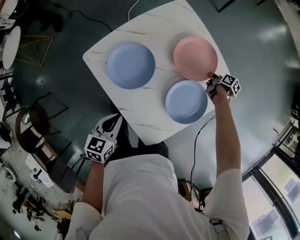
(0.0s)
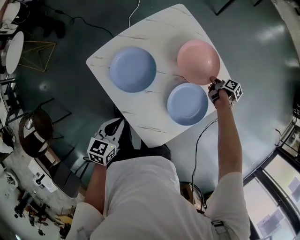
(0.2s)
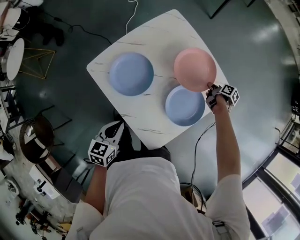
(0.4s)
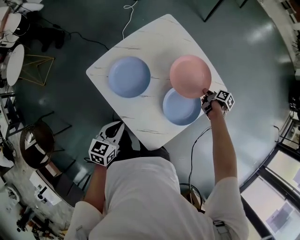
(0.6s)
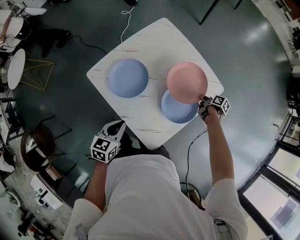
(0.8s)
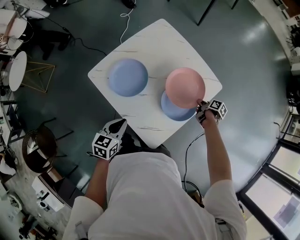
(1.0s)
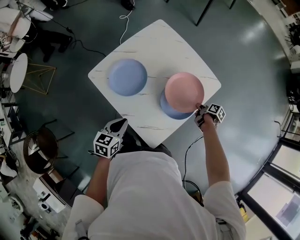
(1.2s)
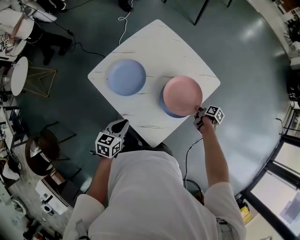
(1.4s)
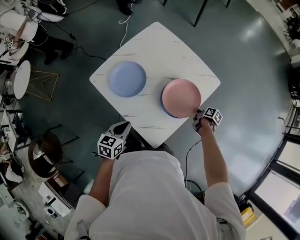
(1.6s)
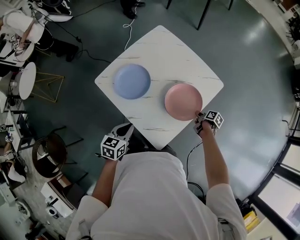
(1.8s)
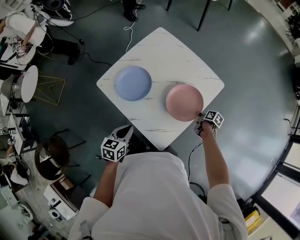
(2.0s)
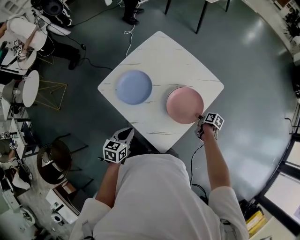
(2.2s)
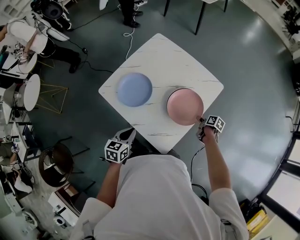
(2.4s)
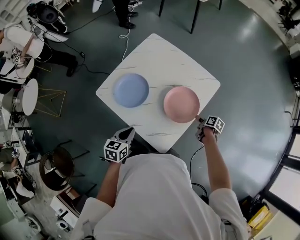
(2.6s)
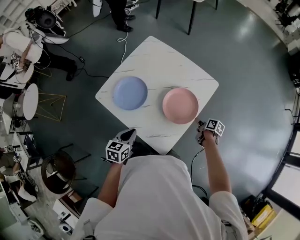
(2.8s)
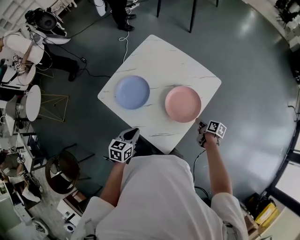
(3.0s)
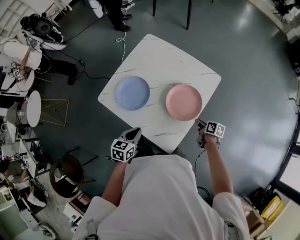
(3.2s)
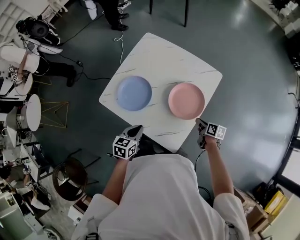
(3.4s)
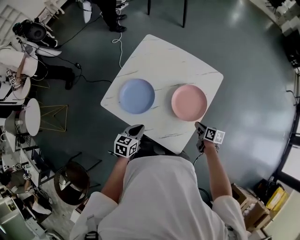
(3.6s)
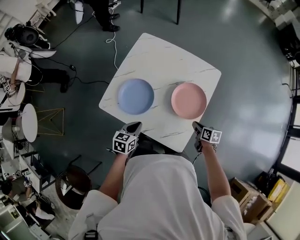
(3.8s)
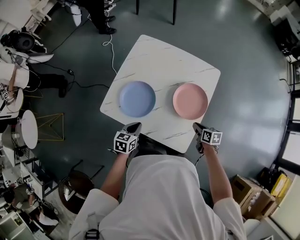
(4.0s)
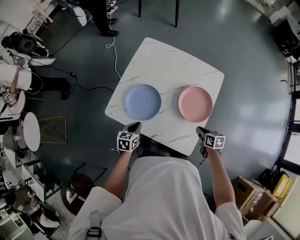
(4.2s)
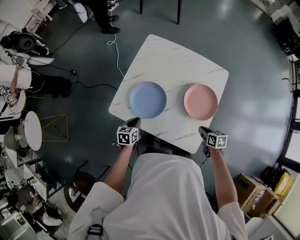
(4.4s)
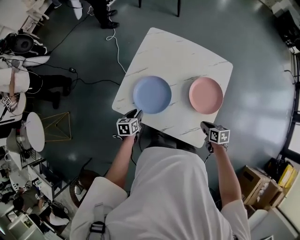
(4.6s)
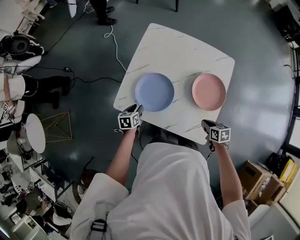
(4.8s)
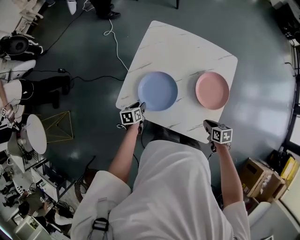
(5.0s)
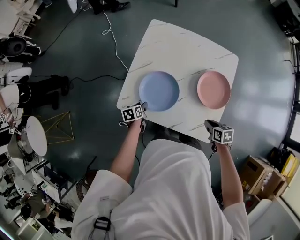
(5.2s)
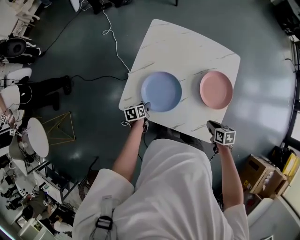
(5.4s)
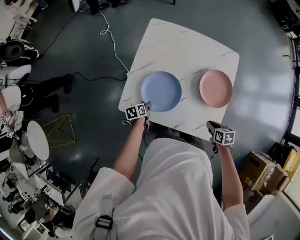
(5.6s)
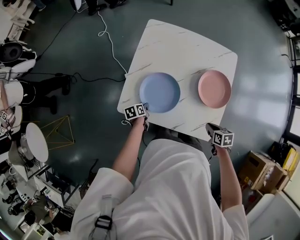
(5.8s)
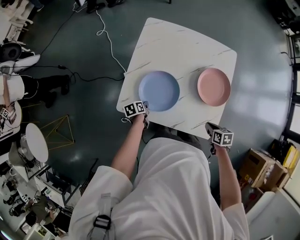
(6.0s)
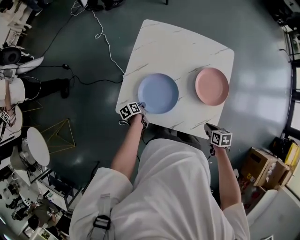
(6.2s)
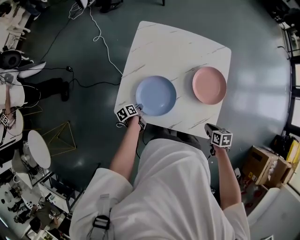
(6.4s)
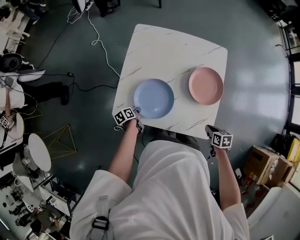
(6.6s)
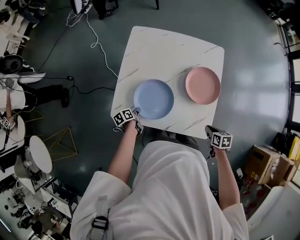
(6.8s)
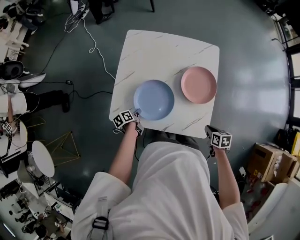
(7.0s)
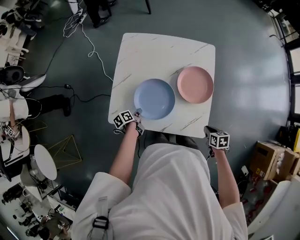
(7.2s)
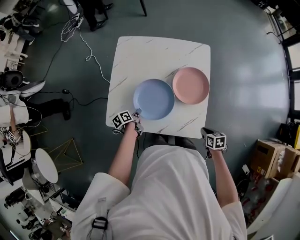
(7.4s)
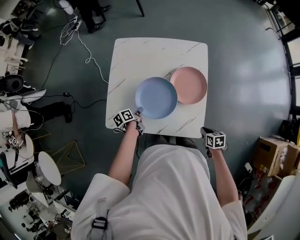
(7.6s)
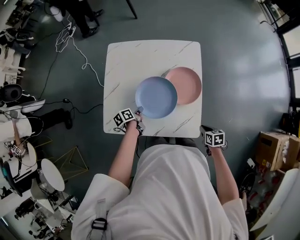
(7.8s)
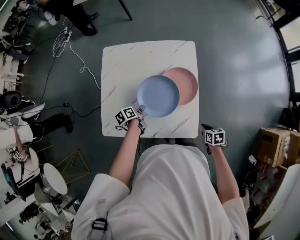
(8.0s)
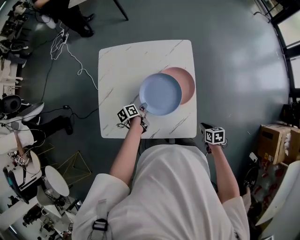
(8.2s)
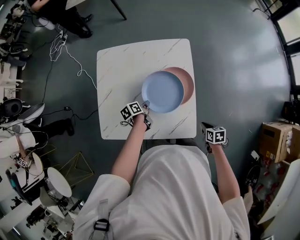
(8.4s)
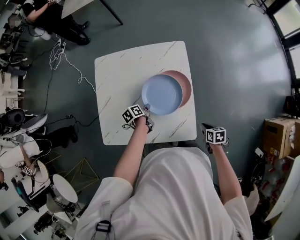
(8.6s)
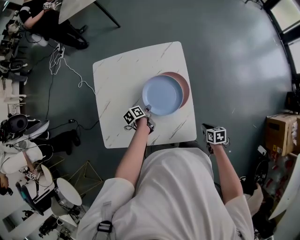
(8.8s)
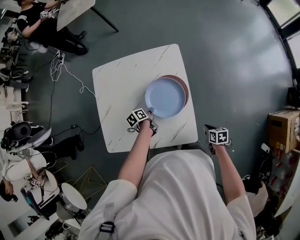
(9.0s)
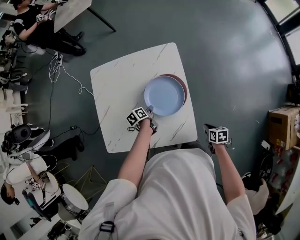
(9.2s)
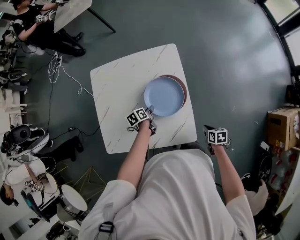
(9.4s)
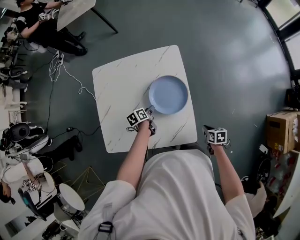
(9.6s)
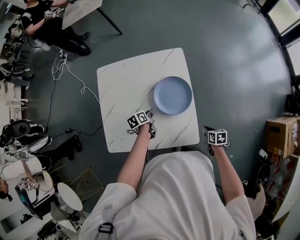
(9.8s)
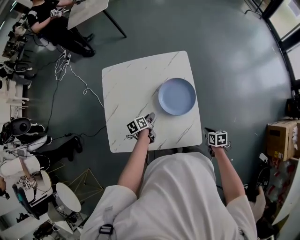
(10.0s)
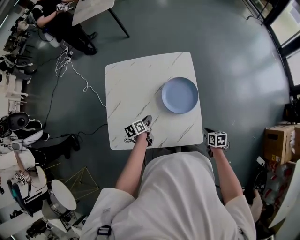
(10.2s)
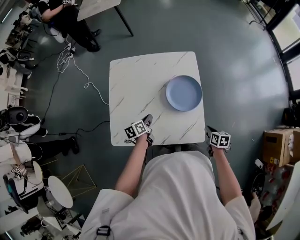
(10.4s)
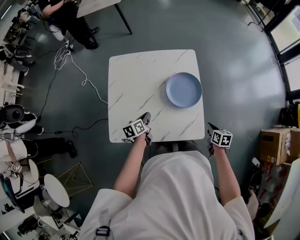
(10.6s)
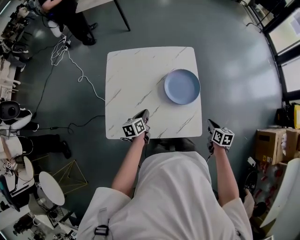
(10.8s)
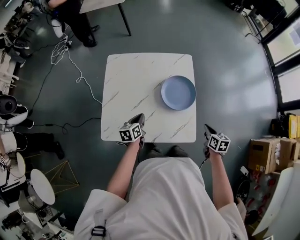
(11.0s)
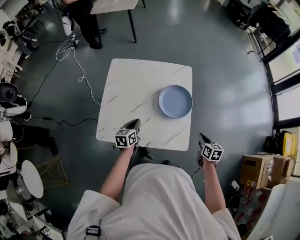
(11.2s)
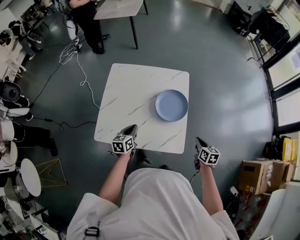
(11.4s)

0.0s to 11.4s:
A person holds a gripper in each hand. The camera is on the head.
0.0s to 1.4s: The right gripper travels backward by approximately 25 cm; the left gripper ends up about 5 cm from where it was.
1.4s to 2.8s: The right gripper moves backward, about 5 cm.
2.8s to 4.2s: The right gripper heads to the left and backward, covering approximately 15 cm, and changes its angle by some 20 degrees, while the left gripper is displaced to the left, forward and downward by about 15 cm.
4.2s to 5.6s: The right gripper heads to the left, covering roughly 10 cm; the left gripper moves downward, to the left and forward, about 20 cm, swivels about 30 degrees, and opens its fingers.
5.6s to 7.2s: The left gripper is displaced to the right by some 5 cm, and closes its fingers. Meanwhile the right gripper moves to the right and backward, roughly 10 cm.
7.2s to 8.6s: The left gripper shifts approximately 20 cm to the right and forward, while the right gripper is displaced to the right by approximately 10 cm.
8.6s to 10.0s: The left gripper opens up.
10.0s to 11.4s: The left gripper travels upward and backward by some 15 cm, turns by roughly 30 degrees, and closes its fingers; the right gripper heads upward, covering approximately 15 cm, and changes its angle by approximately 20 degrees.

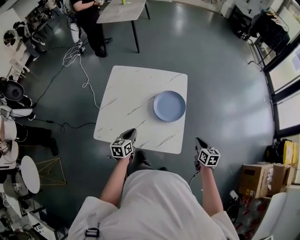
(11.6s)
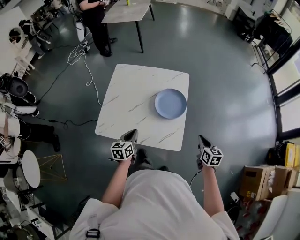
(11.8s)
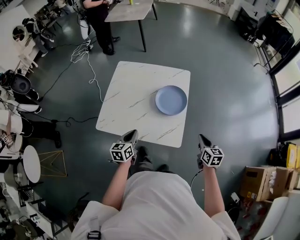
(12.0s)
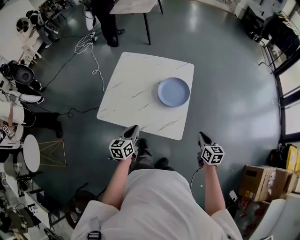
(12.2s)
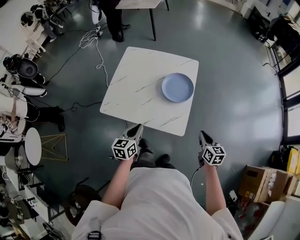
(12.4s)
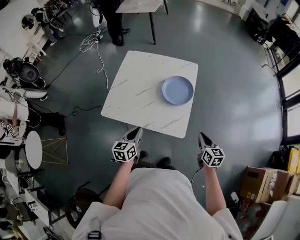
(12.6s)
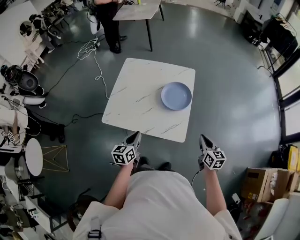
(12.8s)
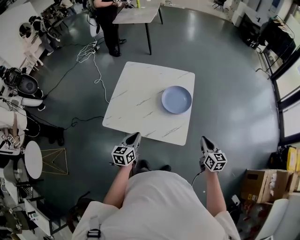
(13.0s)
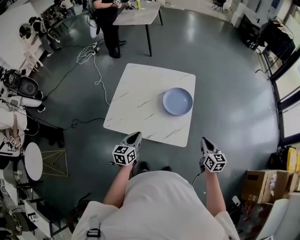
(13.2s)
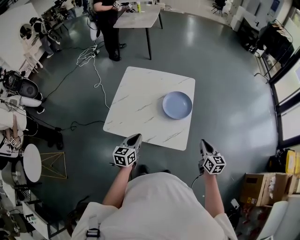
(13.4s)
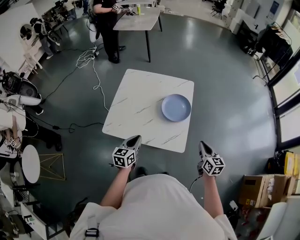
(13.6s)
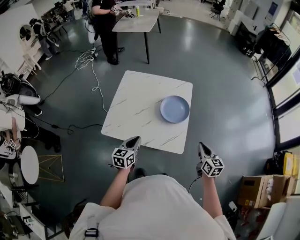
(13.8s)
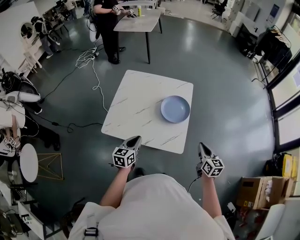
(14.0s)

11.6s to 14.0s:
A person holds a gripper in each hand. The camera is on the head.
11.6s to 12.8s: The left gripper goes about 15 cm backward. Meanwhile the right gripper shifts approximately 10 cm backward and upward.
12.8s to 14.0s: The grippers stay close to where they were, moving slightly.

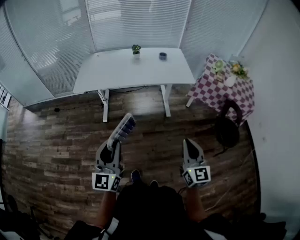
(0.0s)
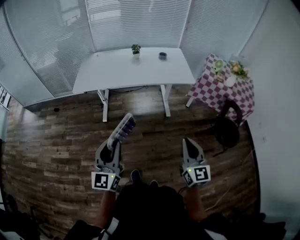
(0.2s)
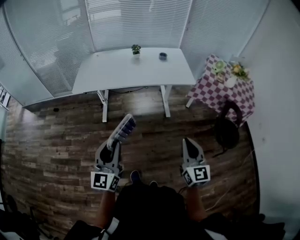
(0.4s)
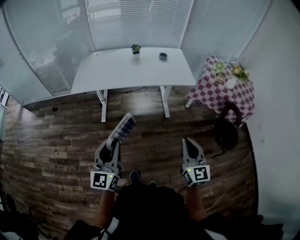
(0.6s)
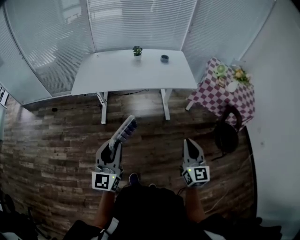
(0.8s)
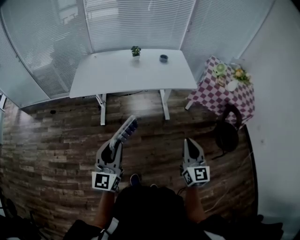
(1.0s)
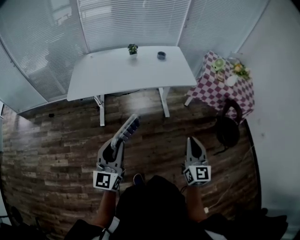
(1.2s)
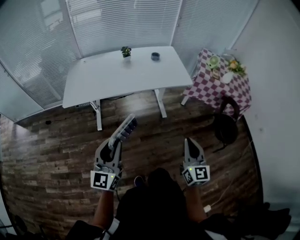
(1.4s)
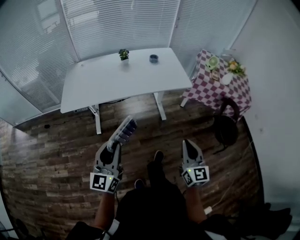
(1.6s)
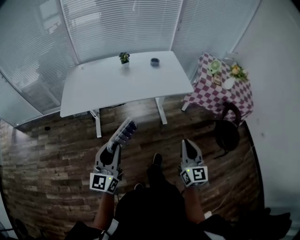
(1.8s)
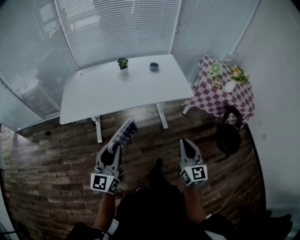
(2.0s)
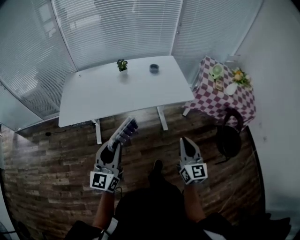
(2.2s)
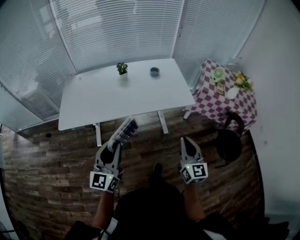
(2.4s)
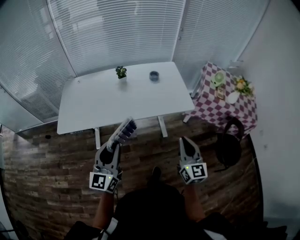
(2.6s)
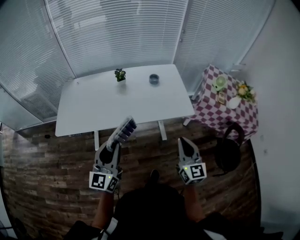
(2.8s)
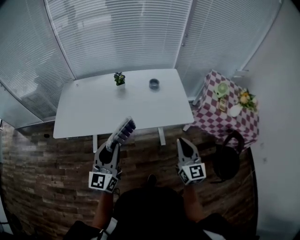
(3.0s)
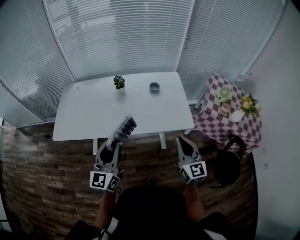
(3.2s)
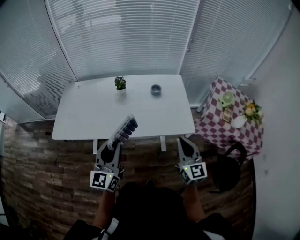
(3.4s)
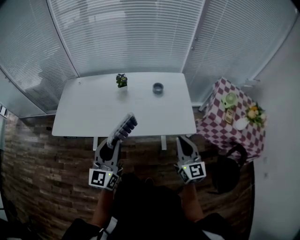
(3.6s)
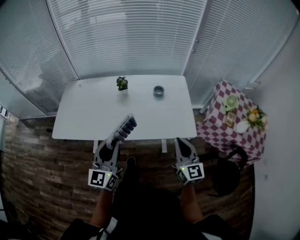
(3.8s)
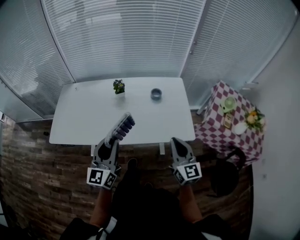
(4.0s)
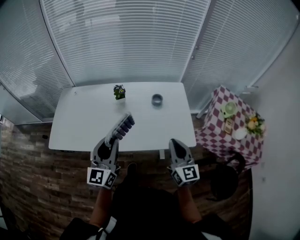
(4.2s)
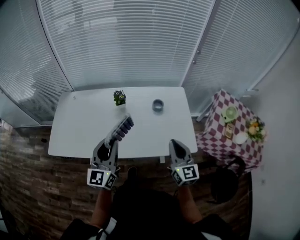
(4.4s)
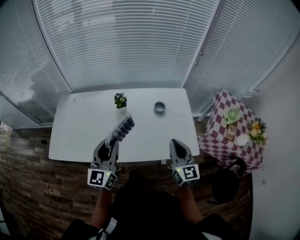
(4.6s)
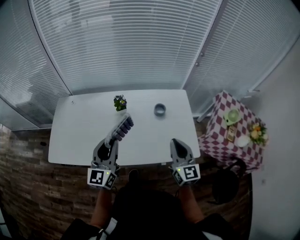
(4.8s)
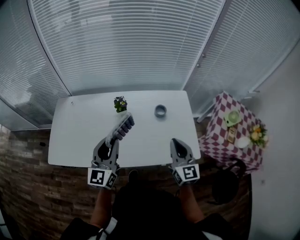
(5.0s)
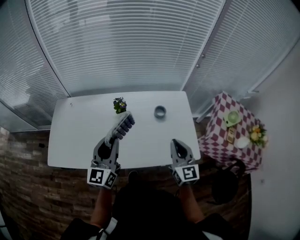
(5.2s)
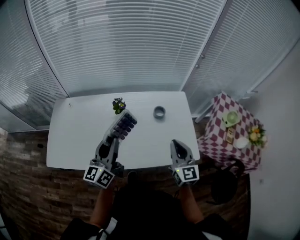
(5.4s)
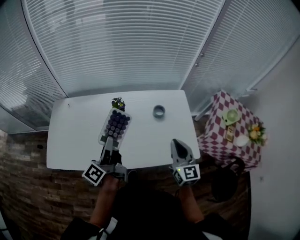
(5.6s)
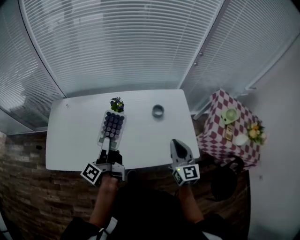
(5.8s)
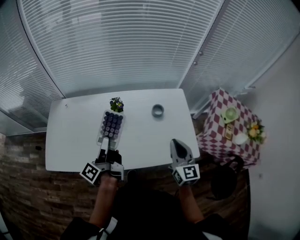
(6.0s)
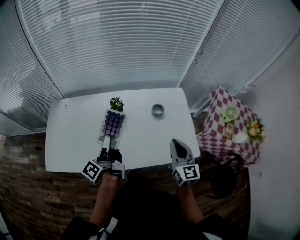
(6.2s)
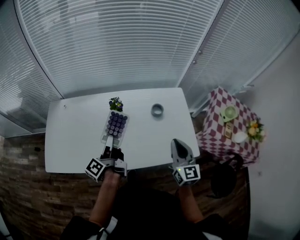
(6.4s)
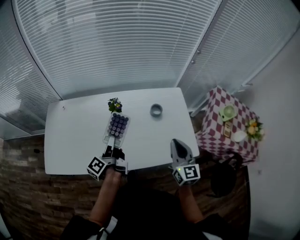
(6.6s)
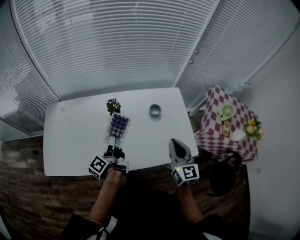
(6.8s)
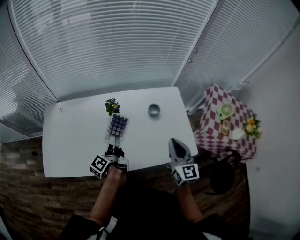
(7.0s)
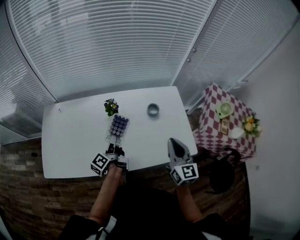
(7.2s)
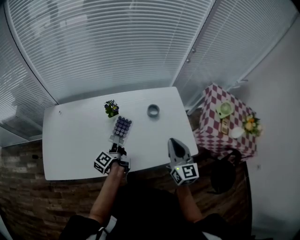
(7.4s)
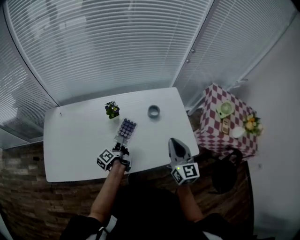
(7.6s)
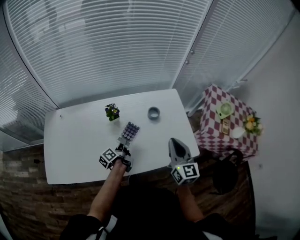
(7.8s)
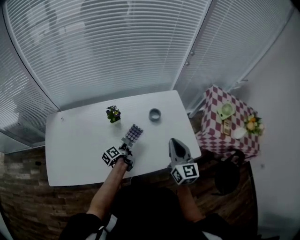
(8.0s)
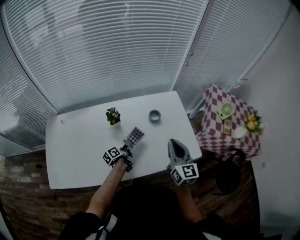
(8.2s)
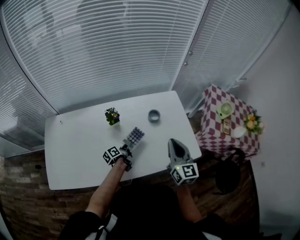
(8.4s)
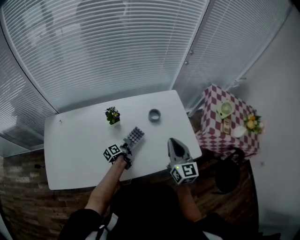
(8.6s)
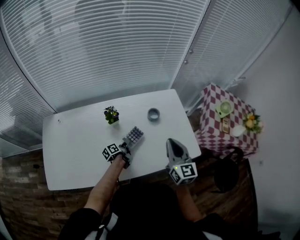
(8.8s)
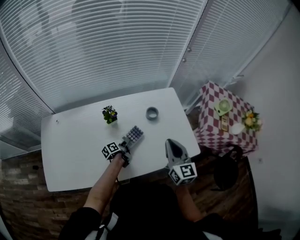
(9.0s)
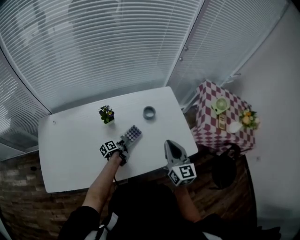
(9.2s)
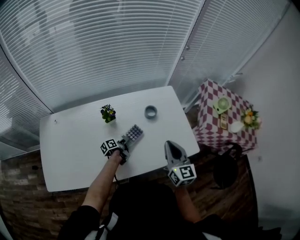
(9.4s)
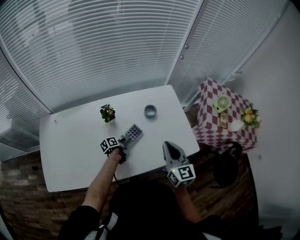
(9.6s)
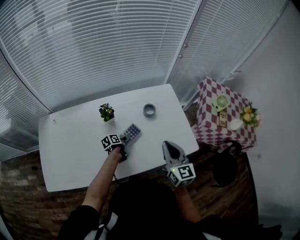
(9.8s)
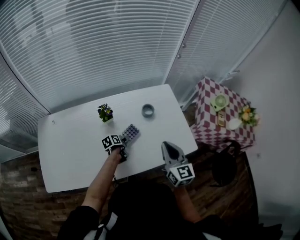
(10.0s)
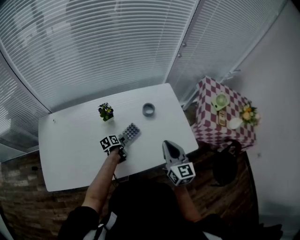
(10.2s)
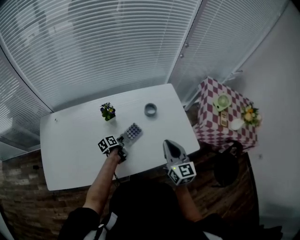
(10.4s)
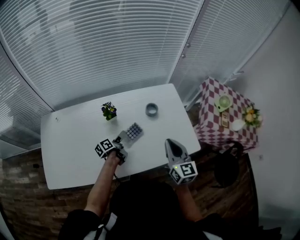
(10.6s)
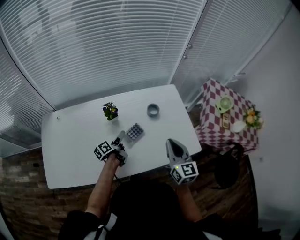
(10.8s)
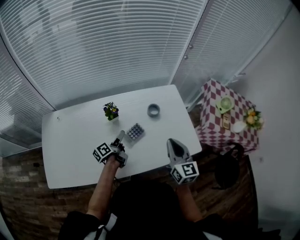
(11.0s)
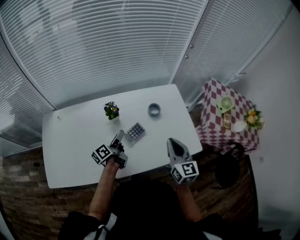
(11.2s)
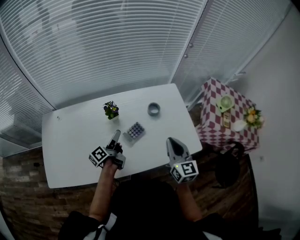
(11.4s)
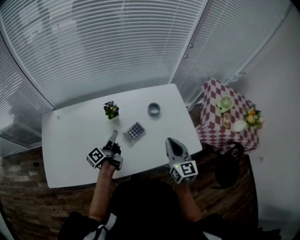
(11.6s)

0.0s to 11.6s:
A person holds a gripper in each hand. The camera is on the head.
0.0s to 1.4s: Both grippers move forward, about 10 cm.
1.4s to 2.8s: Both grippers travel together forward, roughly 25 cm.
2.8s to 4.4s: Both grippers travel together forward, some 25 cm.
4.4s to 5.8s: The grippers both shift forward by about 10 cm. The left gripper rotates around the line of its fingers by approximately 80 degrees, counterclockwise from behind.
5.8s to 7.2s: The left gripper shifts approximately 15 cm downward and forward.
7.2s to 8.8s: The left gripper heads downward, covering approximately 20 cm, and turns by some 30 degrees.
8.8s to 10.2s: The left gripper turns by approximately 30 degrees, and opens its fingers.
10.2s to 11.6s: The left gripper moves upward, about 20 cm, and angles its fingers upward, by some 40 degrees.
